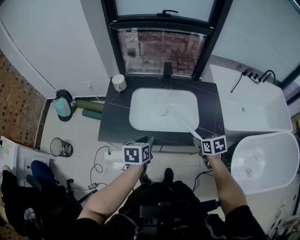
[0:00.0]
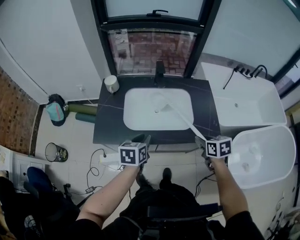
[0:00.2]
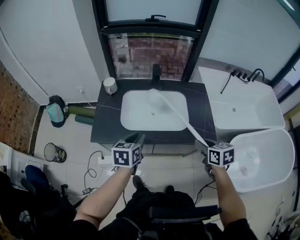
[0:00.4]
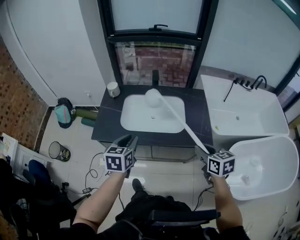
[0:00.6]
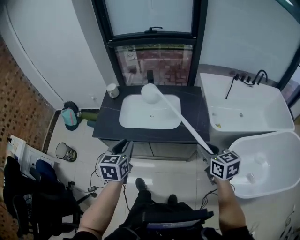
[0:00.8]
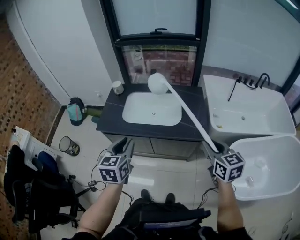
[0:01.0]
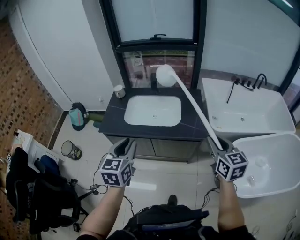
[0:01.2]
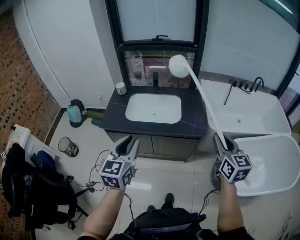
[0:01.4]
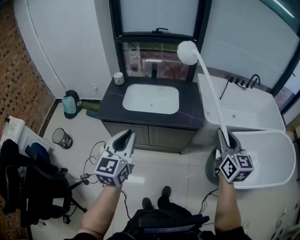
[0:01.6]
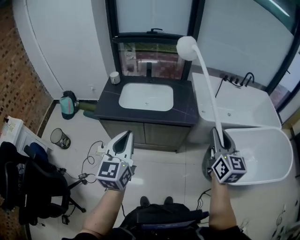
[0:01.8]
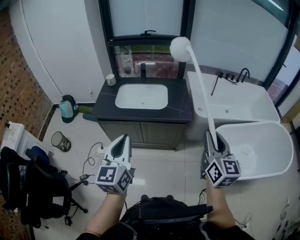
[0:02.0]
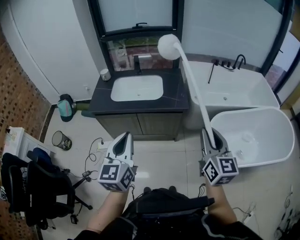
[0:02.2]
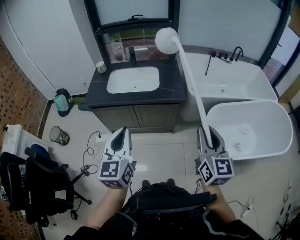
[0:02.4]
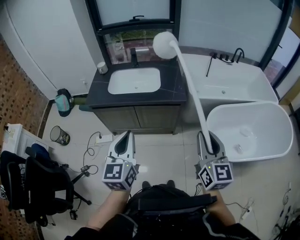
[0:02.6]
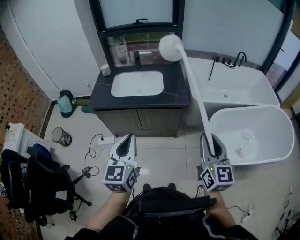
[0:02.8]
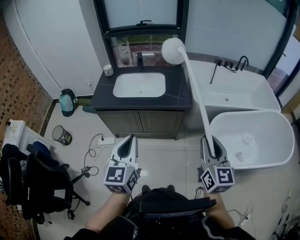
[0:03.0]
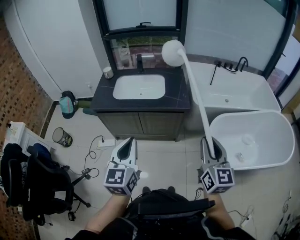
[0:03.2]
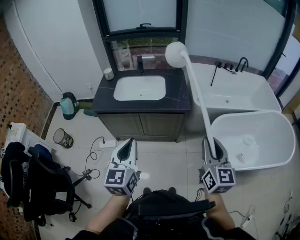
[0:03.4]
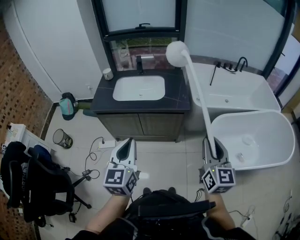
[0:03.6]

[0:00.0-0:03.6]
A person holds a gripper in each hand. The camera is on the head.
0:00.0 to 0:01.8: The two grippers travel together, backward, about 50 cm. Both grippers move upward, about 25 cm. The left gripper points its fingers about 40 degrees further upward, and closes up, while the right gripper angles its fingers upward, by some 50 degrees.
0:01.8 to 0:03.6: The left gripper shifts some 10 cm to the right and backward; the right gripper goes some 10 cm backward and to the right.

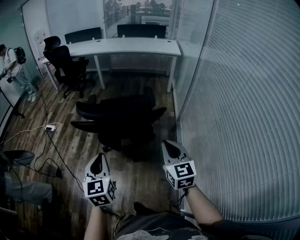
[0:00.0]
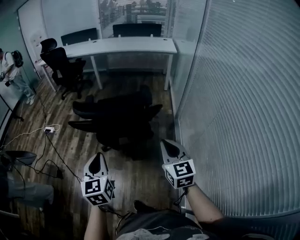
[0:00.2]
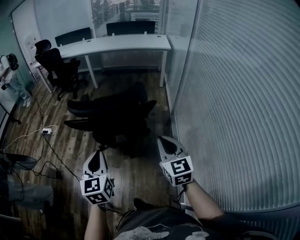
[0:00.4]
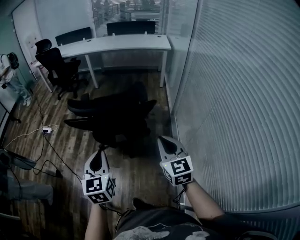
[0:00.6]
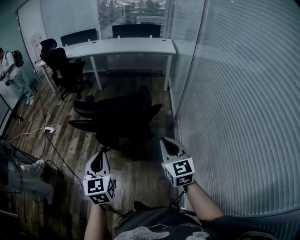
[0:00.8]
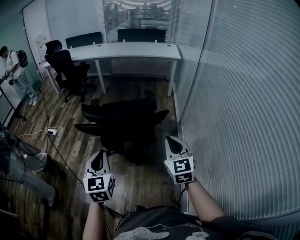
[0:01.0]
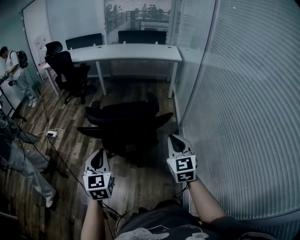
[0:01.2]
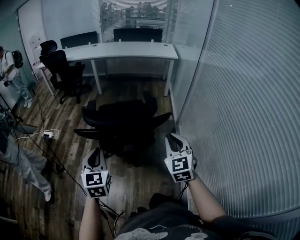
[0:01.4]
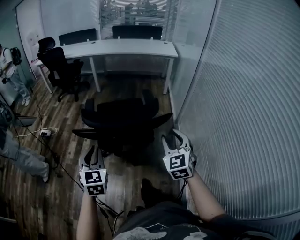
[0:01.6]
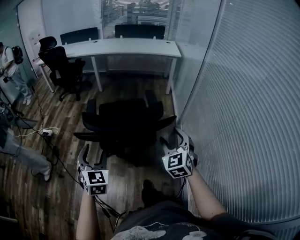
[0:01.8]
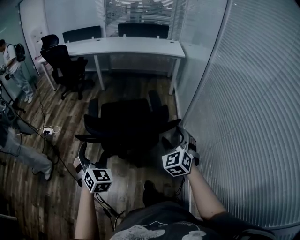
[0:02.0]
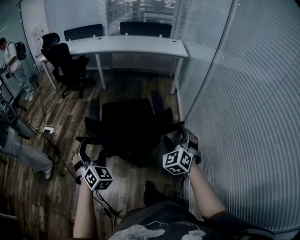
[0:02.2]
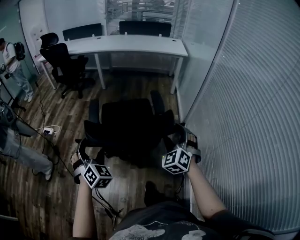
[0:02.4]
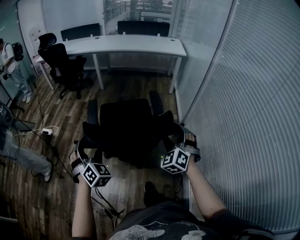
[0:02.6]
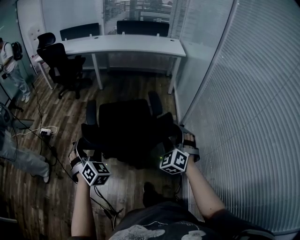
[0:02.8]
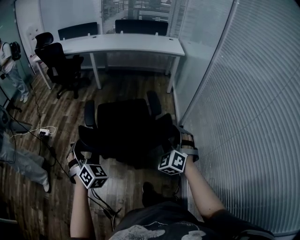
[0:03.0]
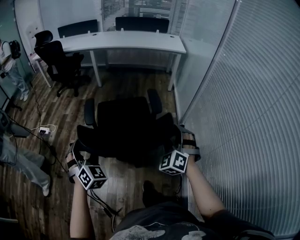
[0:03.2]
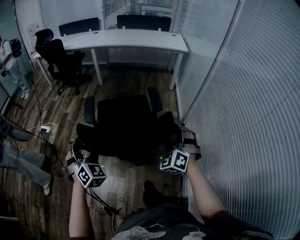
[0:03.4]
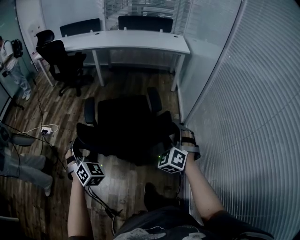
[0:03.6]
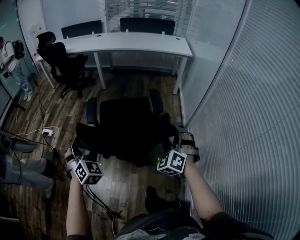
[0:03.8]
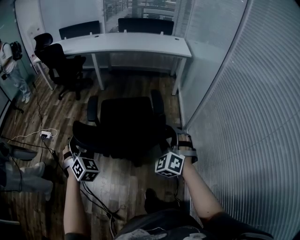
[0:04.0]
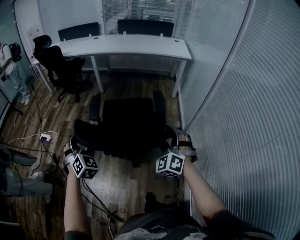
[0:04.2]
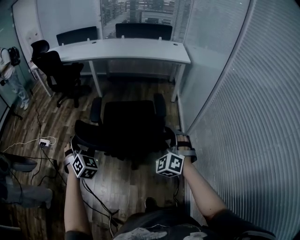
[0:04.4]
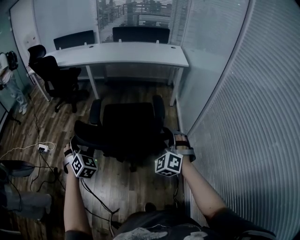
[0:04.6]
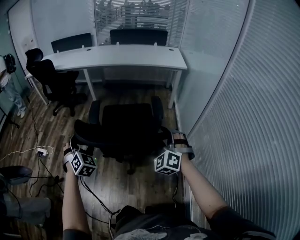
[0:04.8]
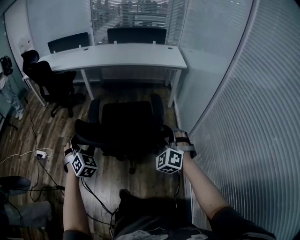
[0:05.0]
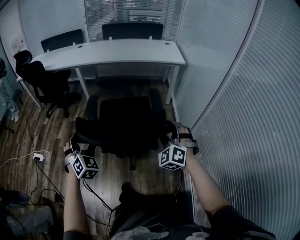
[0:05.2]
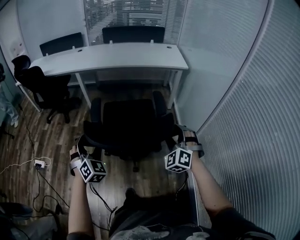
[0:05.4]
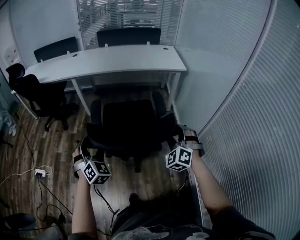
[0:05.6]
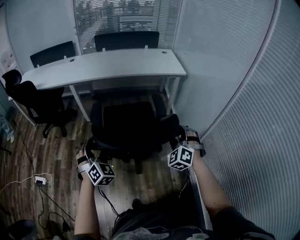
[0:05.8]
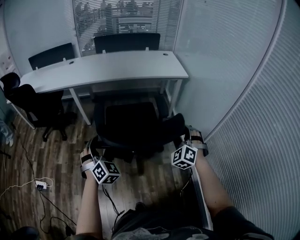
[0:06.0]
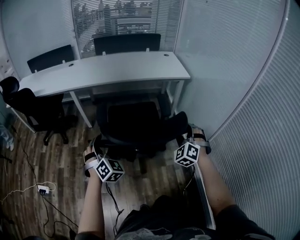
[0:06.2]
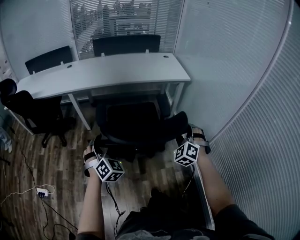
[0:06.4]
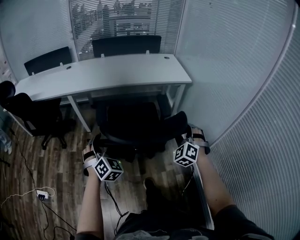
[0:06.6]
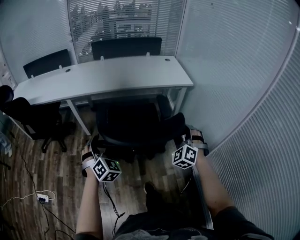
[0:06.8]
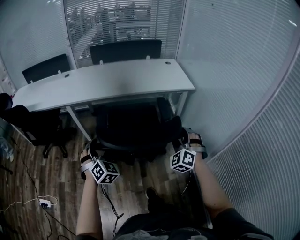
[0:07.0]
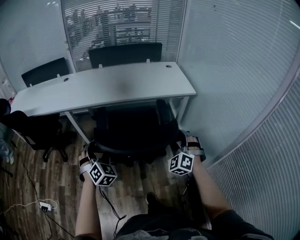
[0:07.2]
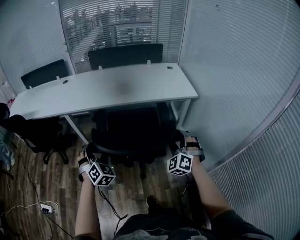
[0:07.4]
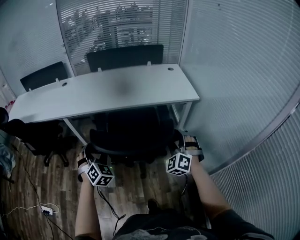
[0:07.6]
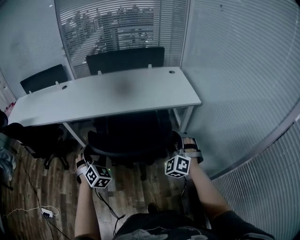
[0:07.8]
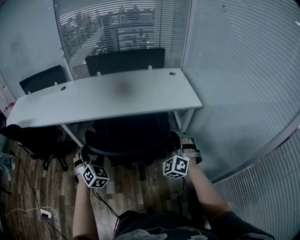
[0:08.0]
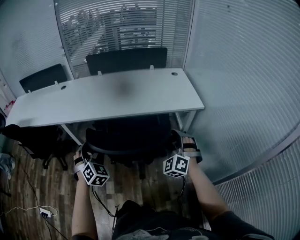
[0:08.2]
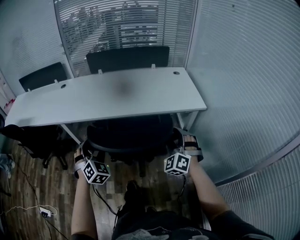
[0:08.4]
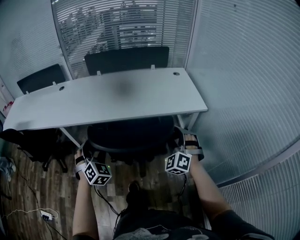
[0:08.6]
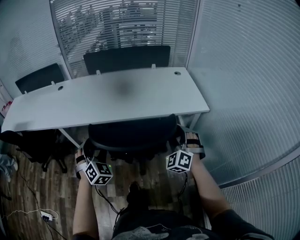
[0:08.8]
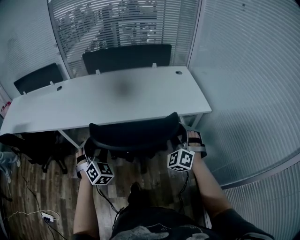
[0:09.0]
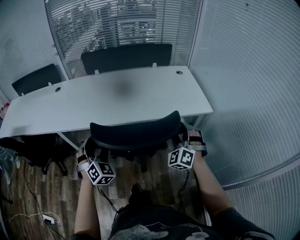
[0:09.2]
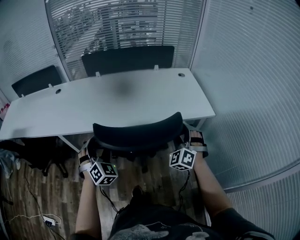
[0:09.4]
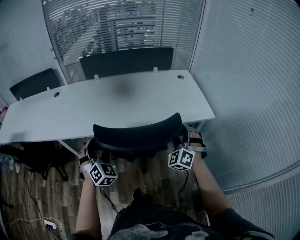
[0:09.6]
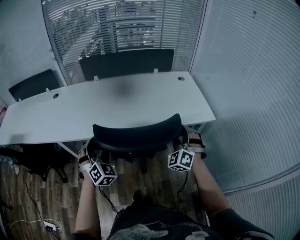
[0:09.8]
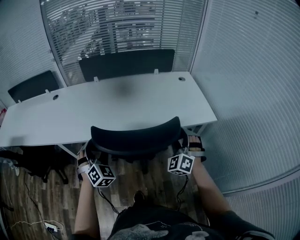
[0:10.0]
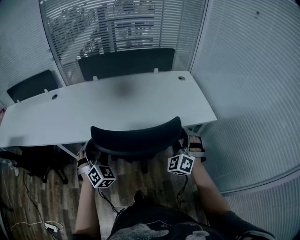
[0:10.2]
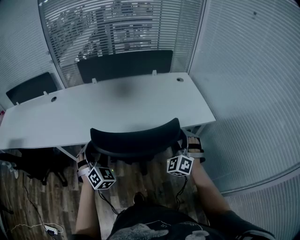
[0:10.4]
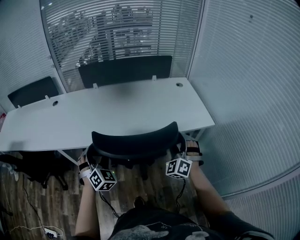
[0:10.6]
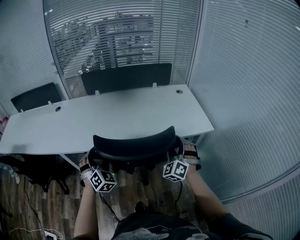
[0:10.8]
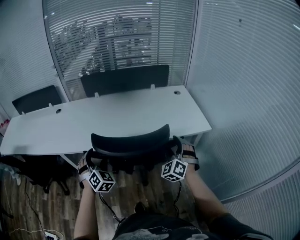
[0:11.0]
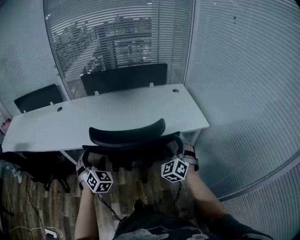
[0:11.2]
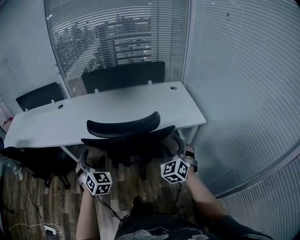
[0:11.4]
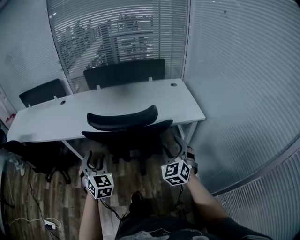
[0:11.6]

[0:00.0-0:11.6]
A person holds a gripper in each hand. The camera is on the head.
0:00.0 to 0:01.4: The grippers both shift forward by about 5 cm.
0:01.4 to 0:02.8: The left gripper shifts some 15 cm forward and to the left, changes its angle by approximately 40 degrees, and opens up. Meanwhile the right gripper moves forward and downward, about 15 cm, rotates roughly 40 degrees, and opens up.
0:02.8 to 0:04.4: The two grippers go about 20 cm forward.
0:04.4 to 0:05.8: Both grippers move forward, some 30 cm.
0:05.8 to 0:07.2: The grippers both shift forward by some 25 cm.
0:07.2 to 0:08.8: The two grippers go some 25 cm forward.
0:08.8 to 0:10.2: Both grippers move forward, about 10 cm.
0:10.2 to 0:11.6: The grippers both shift backward by about 15 cm. The left gripper changes its angle by about 20 degrees, while the right gripper changes its angle by some 30 degrees.

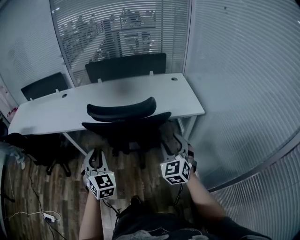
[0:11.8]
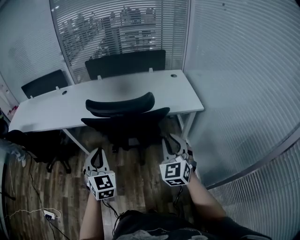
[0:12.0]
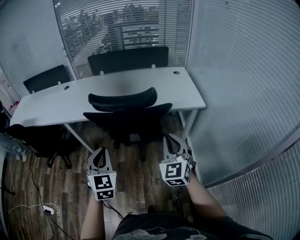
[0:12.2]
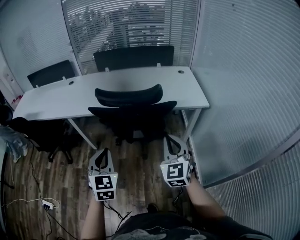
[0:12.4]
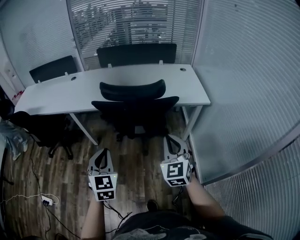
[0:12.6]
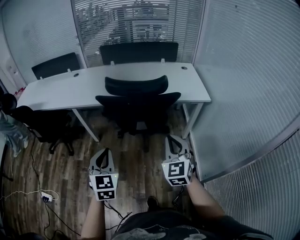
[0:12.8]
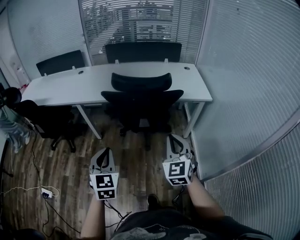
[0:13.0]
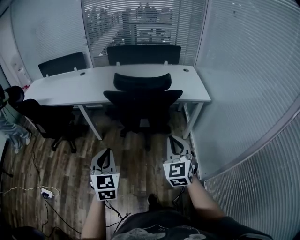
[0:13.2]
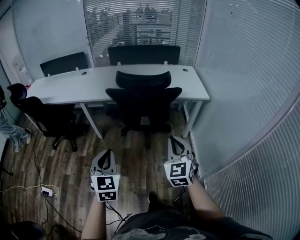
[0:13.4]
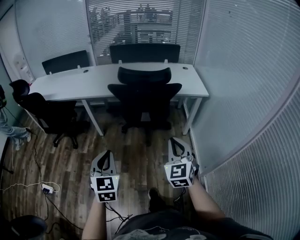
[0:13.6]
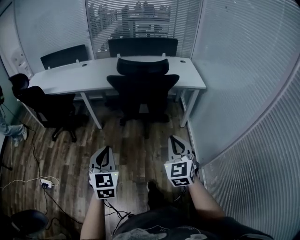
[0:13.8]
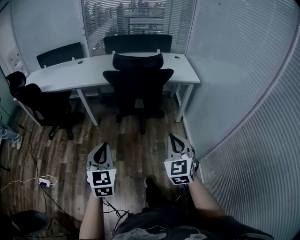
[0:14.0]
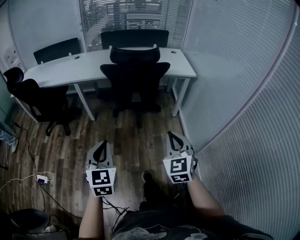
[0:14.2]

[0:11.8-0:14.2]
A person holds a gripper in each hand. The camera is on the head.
0:11.8 to 0:13.0: The left gripper is displaced backward by roughly 20 cm. The right gripper is displaced backward and to the left by about 20 cm, and closes up.
0:13.0 to 0:14.2: Both grippers move backward, approximately 25 cm.

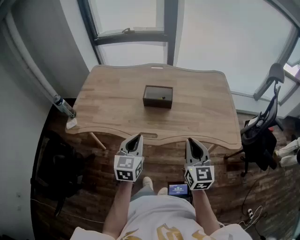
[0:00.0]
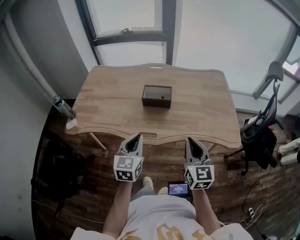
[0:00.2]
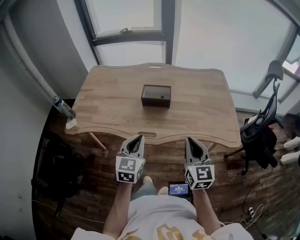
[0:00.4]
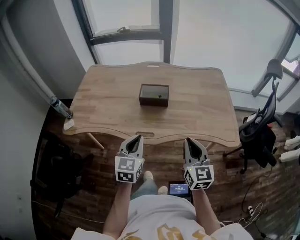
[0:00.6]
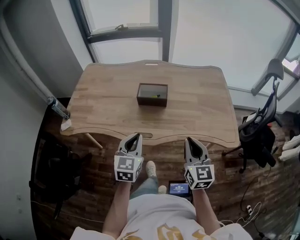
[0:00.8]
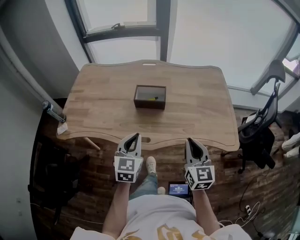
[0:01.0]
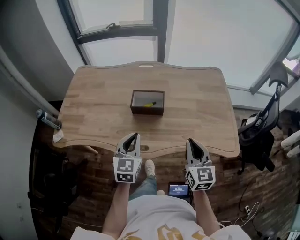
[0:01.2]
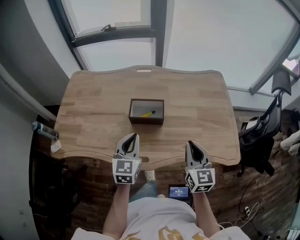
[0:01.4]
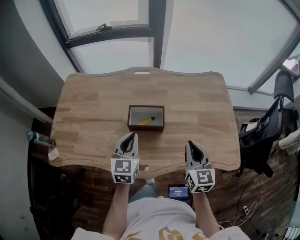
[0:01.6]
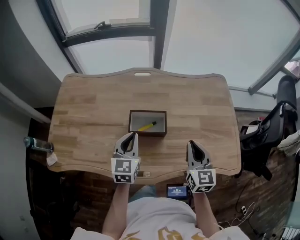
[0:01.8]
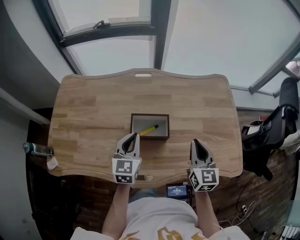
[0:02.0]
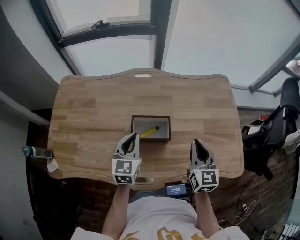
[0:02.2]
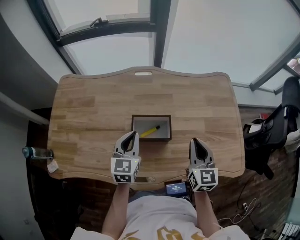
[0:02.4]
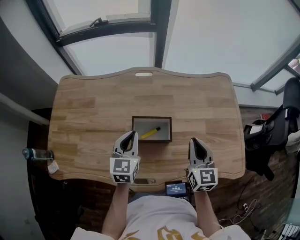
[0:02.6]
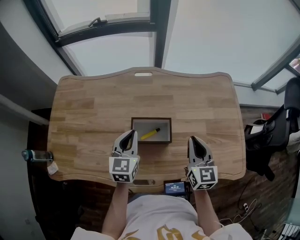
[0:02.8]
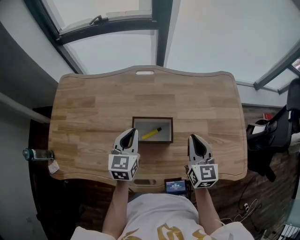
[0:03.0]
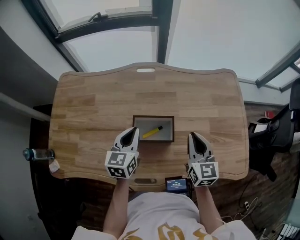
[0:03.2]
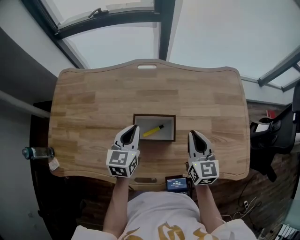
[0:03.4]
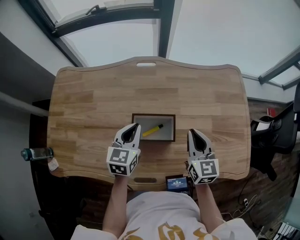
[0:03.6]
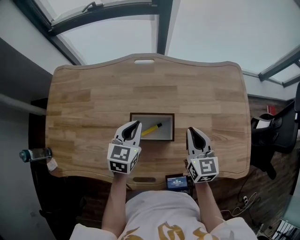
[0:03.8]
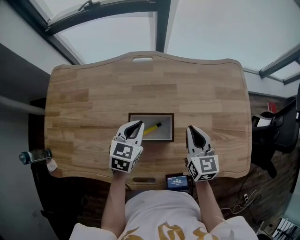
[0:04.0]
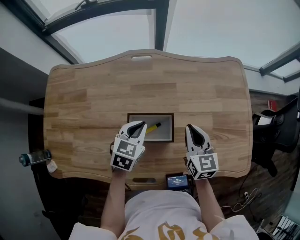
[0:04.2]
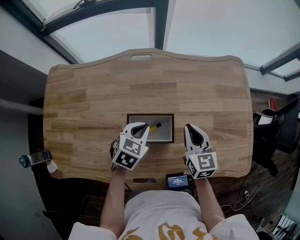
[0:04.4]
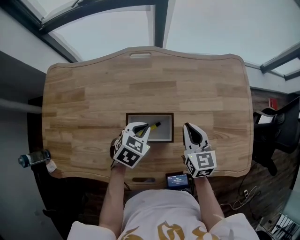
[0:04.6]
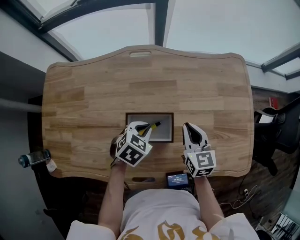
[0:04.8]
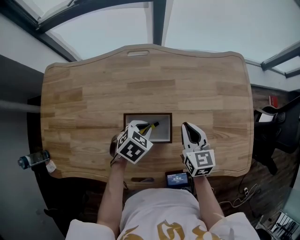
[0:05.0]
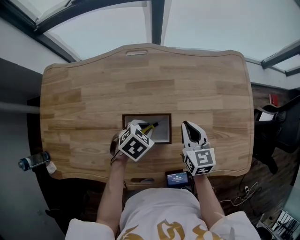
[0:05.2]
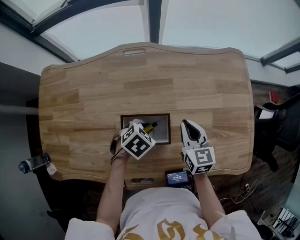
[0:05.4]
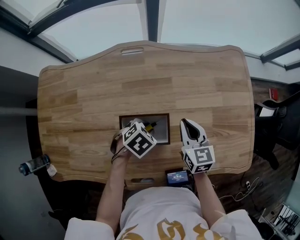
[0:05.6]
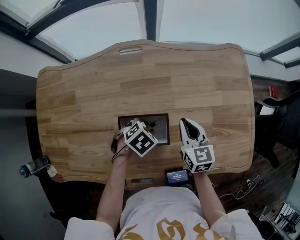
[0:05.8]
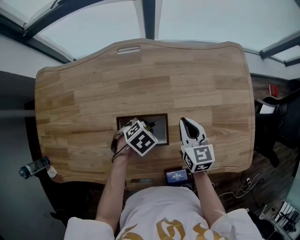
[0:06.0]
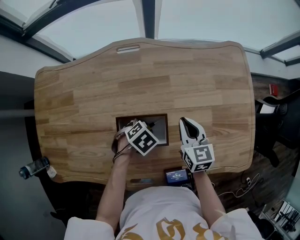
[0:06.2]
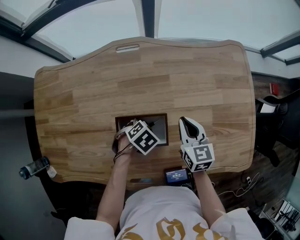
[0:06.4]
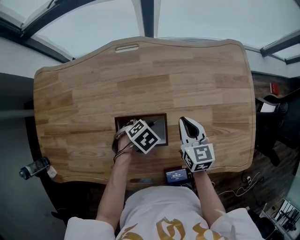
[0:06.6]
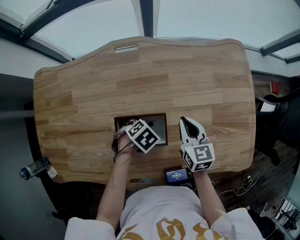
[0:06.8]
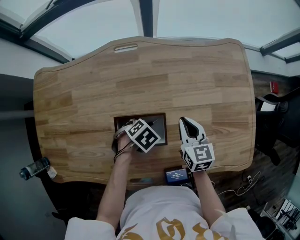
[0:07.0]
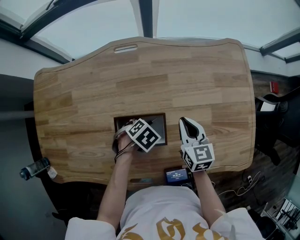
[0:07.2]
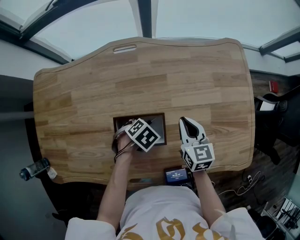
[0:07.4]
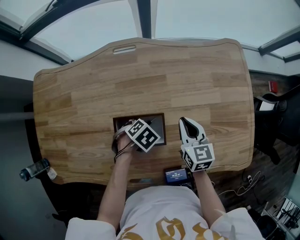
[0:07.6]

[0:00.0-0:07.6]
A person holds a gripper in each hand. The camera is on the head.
0:00.0 to 0:01.6: The grippers both shift forward by roughly 25 cm.
0:01.6 to 0:03.0: Both grippers move forward, some 10 cm.
0:03.0 to 0:04.6: The left gripper shifts some 10 cm downward and to the right, and points its fingers about 30 degrees further downward; the right gripper travels downward and forward by roughly 10 cm.
0:04.6 to 0:06.0: The left gripper heads downward, covering approximately 5 cm, rotates roughly 30 degrees, and opens up.
0:06.0 to 0:07.6: There are only small adjustments of the grippers.
